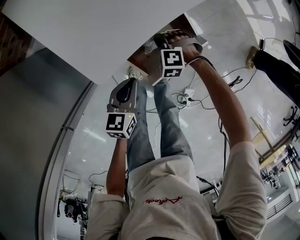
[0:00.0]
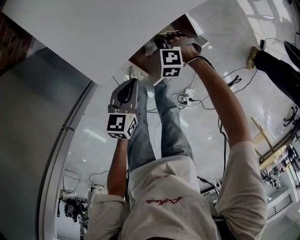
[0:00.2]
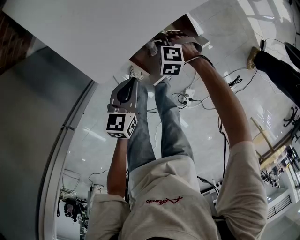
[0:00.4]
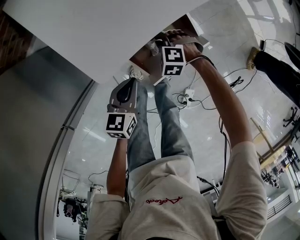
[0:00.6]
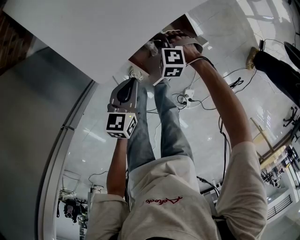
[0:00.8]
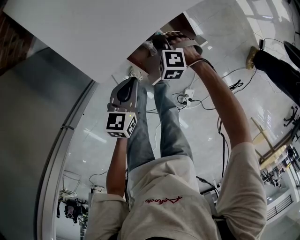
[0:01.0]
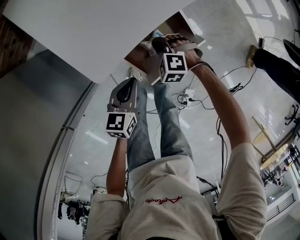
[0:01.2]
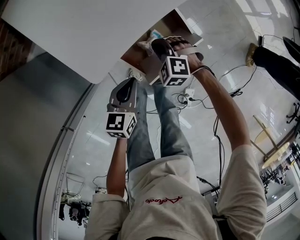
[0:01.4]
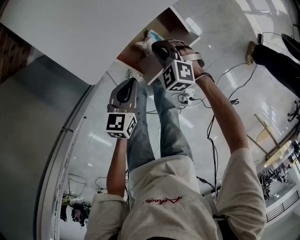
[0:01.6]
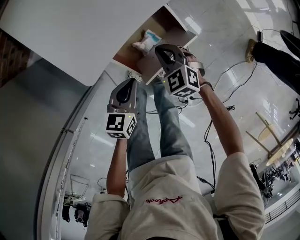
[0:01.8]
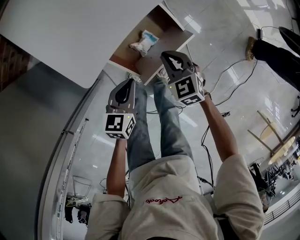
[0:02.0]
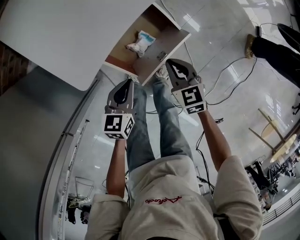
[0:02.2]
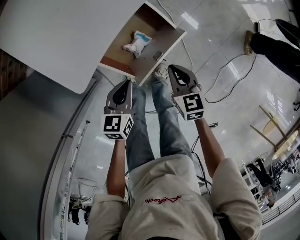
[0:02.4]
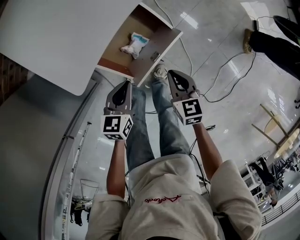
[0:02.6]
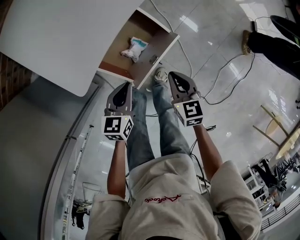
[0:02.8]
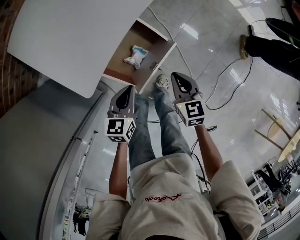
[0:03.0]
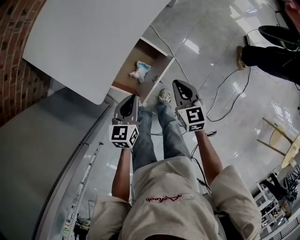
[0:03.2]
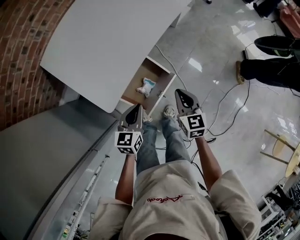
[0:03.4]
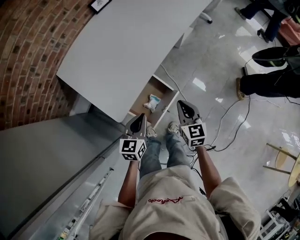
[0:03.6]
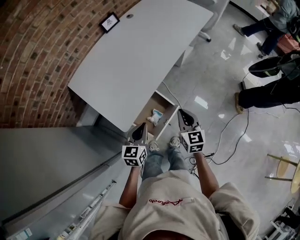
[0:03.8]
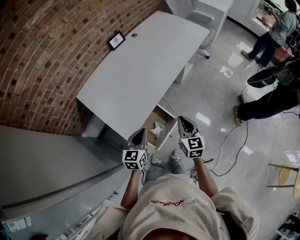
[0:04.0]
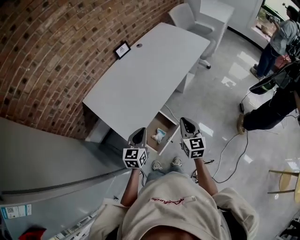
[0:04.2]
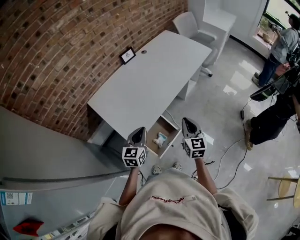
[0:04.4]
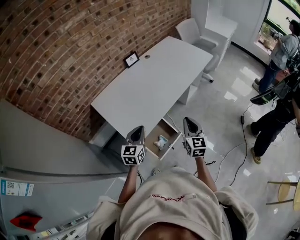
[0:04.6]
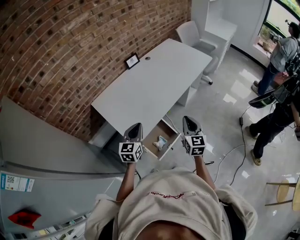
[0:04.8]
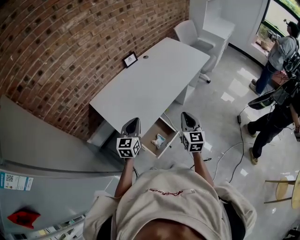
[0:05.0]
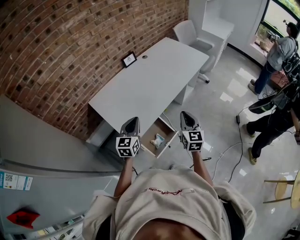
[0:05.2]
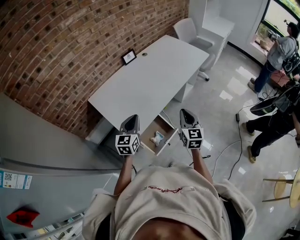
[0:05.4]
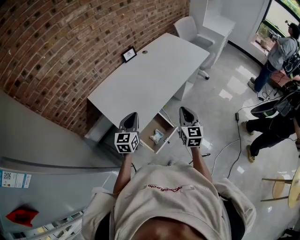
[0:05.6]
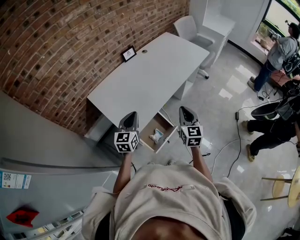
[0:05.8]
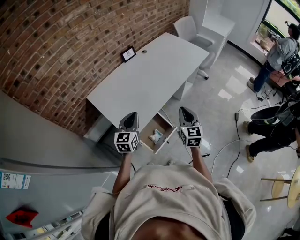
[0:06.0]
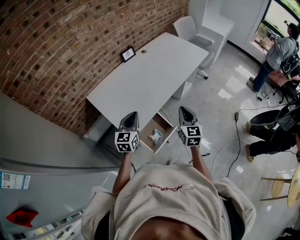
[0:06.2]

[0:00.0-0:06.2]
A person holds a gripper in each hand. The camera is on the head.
0:00.0 to 0:01.6: The right gripper heads upward, covering about 5 cm, and turns by approximately 30 degrees.
0:01.6 to 0:03.2: The left gripper shifts roughly 10 cm upward; the right gripper is displaced upward and to the right by roughly 20 cm, and rotates around the line of its fingers by about 60 degrees, clockwise from behind.
0:03.2 to 0:04.6: Both grippers move upward, about 30 cm. The right gripper swivels about 30 degrees. The left gripper rotates about 30 degrees.
0:04.6 to 0:06.2: There are only small adjustments of the grippers.

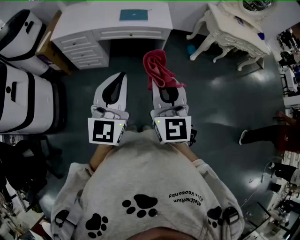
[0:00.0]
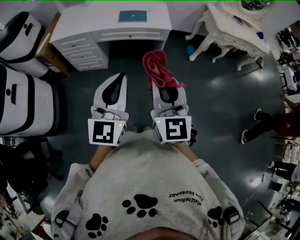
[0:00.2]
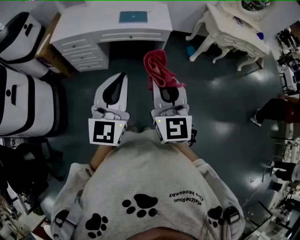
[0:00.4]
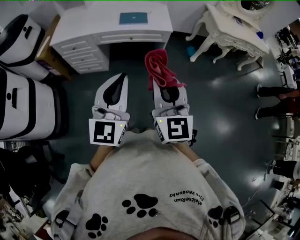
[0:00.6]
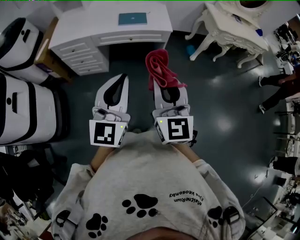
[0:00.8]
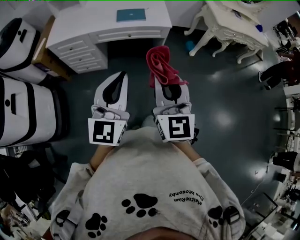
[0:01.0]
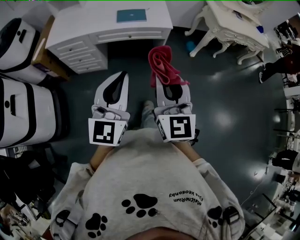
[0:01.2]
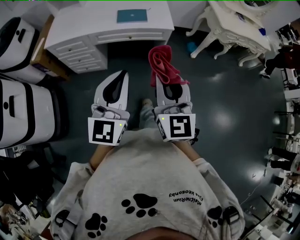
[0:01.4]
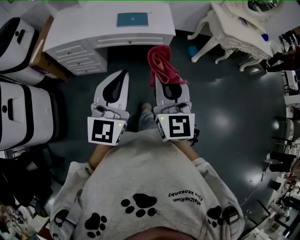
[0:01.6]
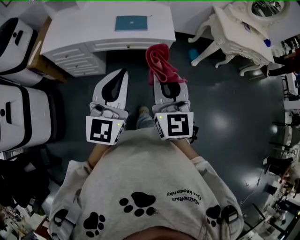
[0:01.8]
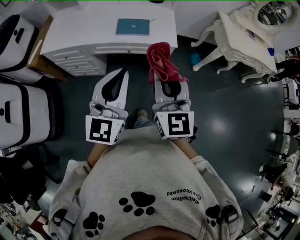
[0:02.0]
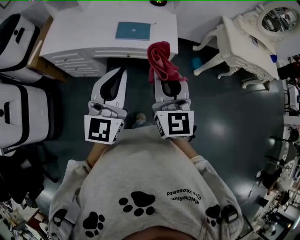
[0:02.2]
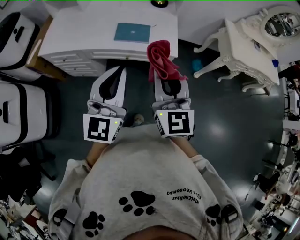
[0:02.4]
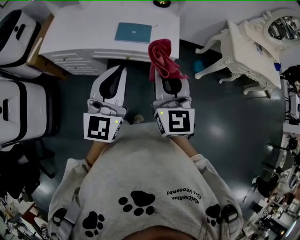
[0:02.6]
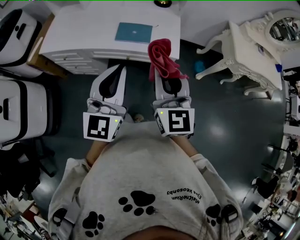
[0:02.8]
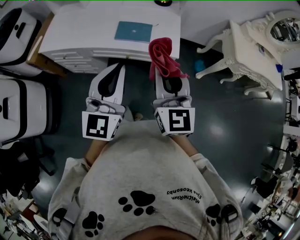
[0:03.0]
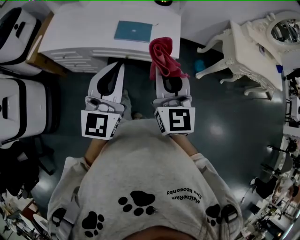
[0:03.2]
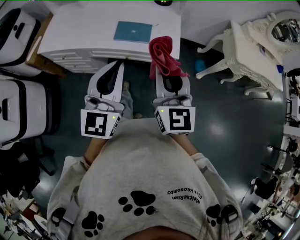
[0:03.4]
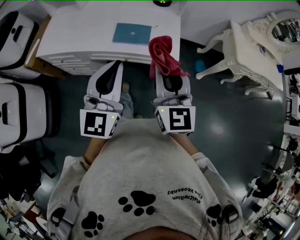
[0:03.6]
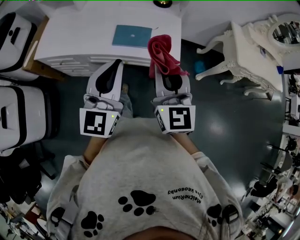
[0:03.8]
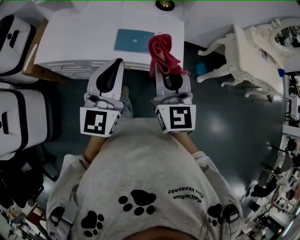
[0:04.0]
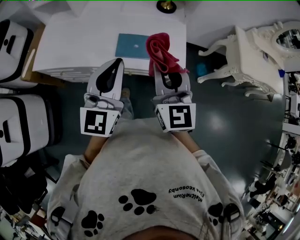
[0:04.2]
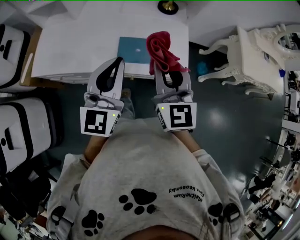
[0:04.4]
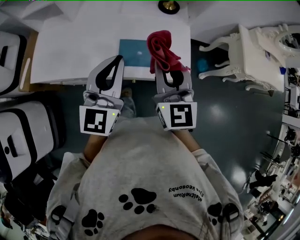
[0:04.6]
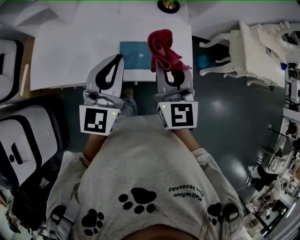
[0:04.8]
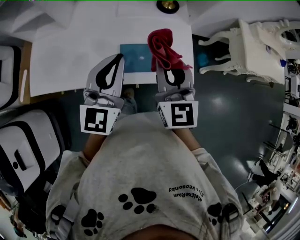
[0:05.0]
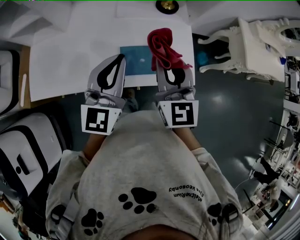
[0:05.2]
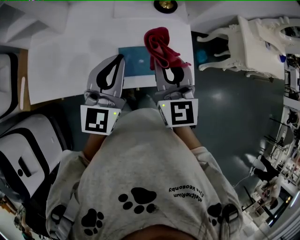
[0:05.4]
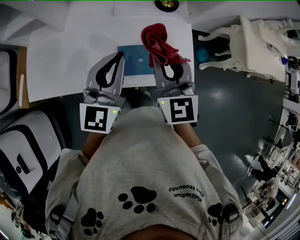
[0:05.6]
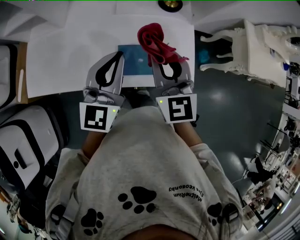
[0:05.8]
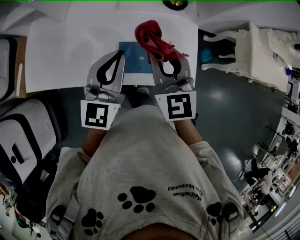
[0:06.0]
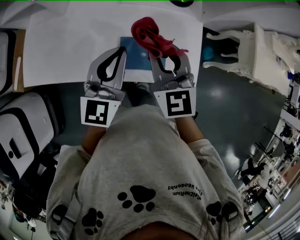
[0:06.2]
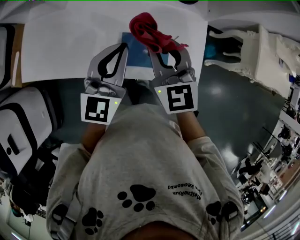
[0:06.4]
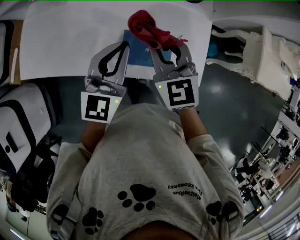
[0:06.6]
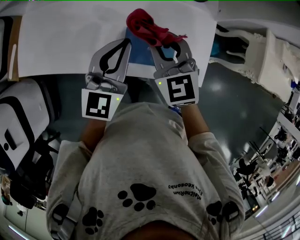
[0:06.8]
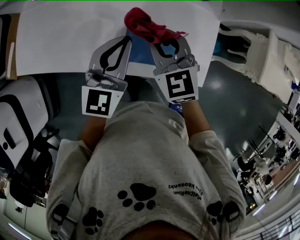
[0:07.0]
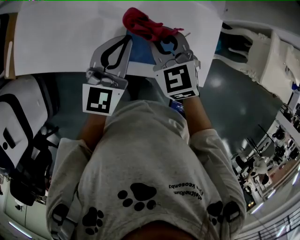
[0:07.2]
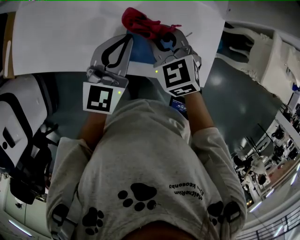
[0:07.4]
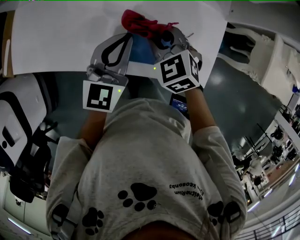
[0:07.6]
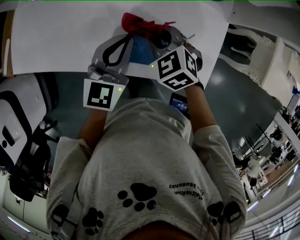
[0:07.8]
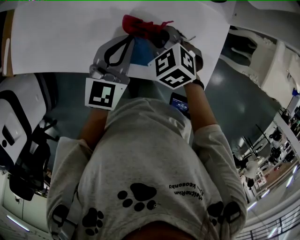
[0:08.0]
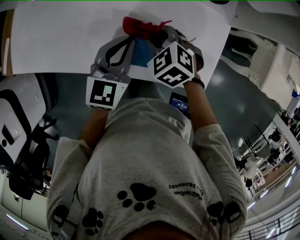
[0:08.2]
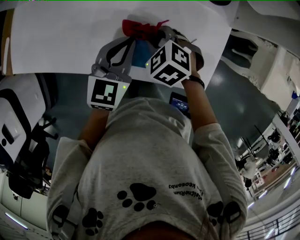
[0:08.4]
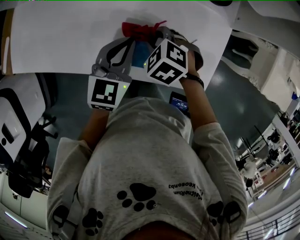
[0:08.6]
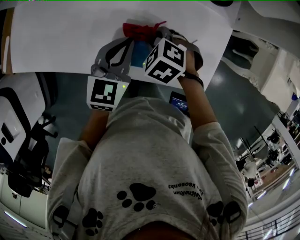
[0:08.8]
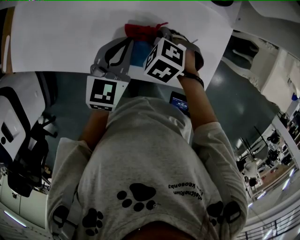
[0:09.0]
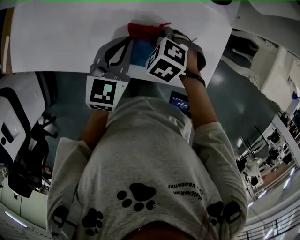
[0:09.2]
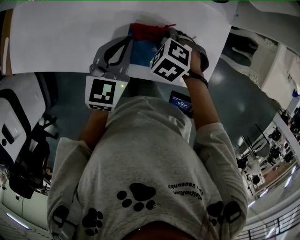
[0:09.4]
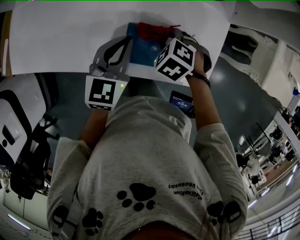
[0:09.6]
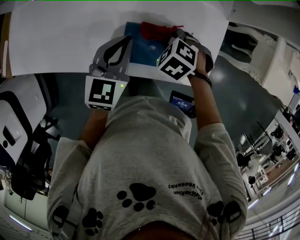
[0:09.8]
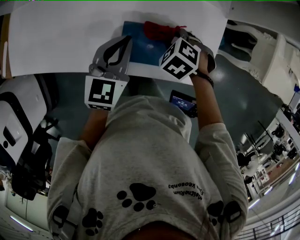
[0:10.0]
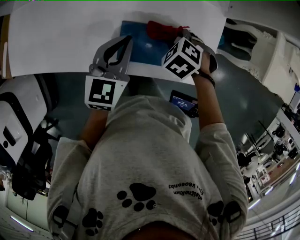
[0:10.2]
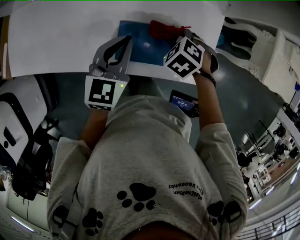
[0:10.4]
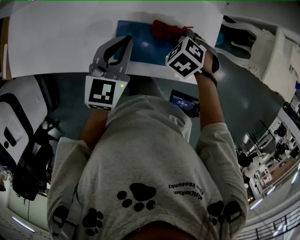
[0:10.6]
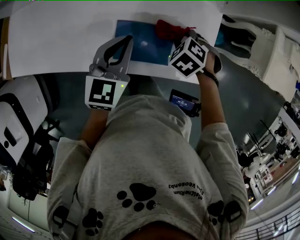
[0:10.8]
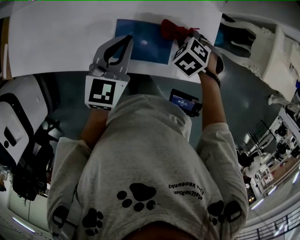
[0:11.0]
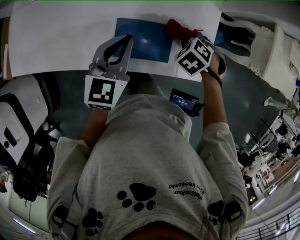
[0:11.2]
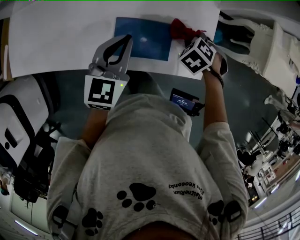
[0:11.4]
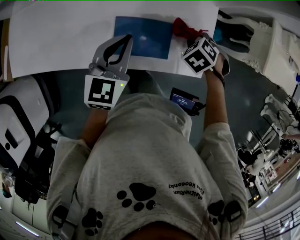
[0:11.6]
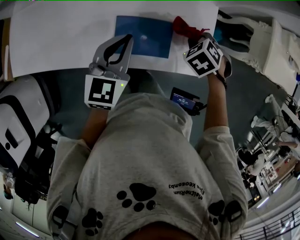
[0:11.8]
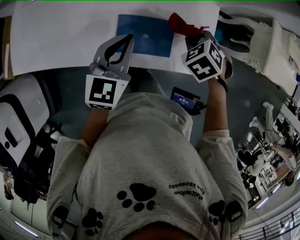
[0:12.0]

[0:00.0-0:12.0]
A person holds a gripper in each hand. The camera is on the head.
0:00.0 to 0:01.6: Both grippers travel together forward, approximately 10 cm.
0:01.6 to 0:03.0: The grippers both shift forward by some 20 cm.
0:03.0 to 0:04.4: Both grippers travel together forward, about 20 cm.
0:04.4 to 0:06.0: The left gripper is displaced forward and downward by some 15 cm; the right gripper travels forward by about 15 cm.
0:06.0 to 0:07.6: The right gripper shifts about 20 cm downward, and points its fingers about 40 degrees further downward. The left gripper shifts roughly 15 cm downward.
0:07.6 to 0:09.0: The right gripper goes about 10 cm downward, and rotates some 30 degrees, while the left gripper heads downward, covering about 5 cm.
0:09.0 to 0:10.4: The right gripper shifts by approximately 10 cm.
0:10.4 to 0:12.0: The right gripper moves roughly 10 cm.

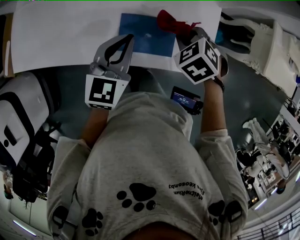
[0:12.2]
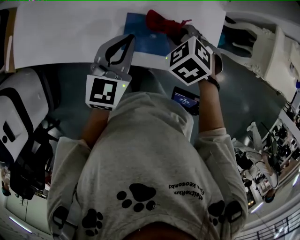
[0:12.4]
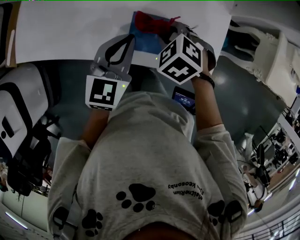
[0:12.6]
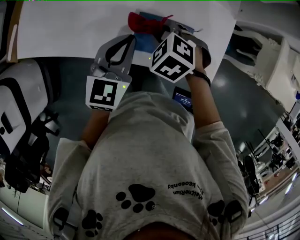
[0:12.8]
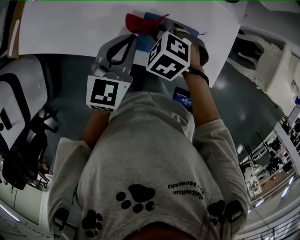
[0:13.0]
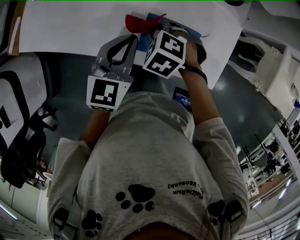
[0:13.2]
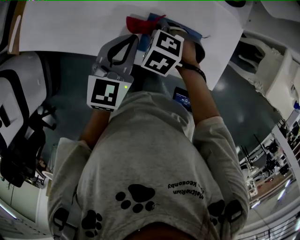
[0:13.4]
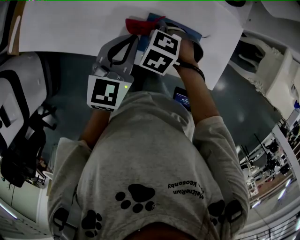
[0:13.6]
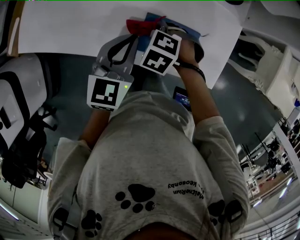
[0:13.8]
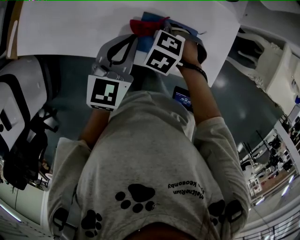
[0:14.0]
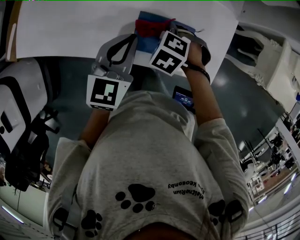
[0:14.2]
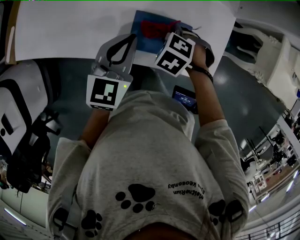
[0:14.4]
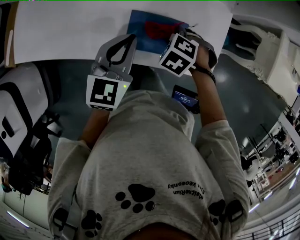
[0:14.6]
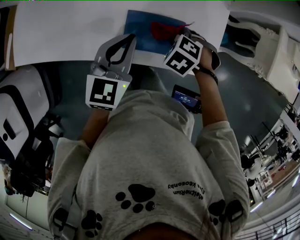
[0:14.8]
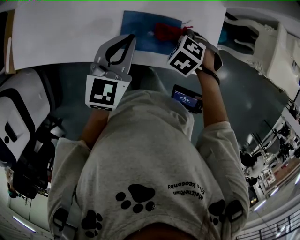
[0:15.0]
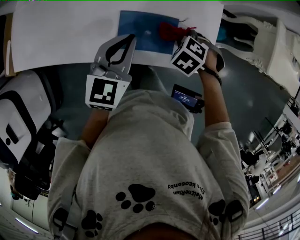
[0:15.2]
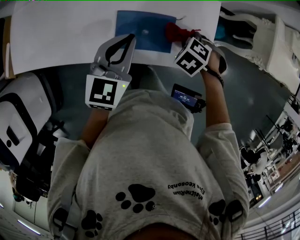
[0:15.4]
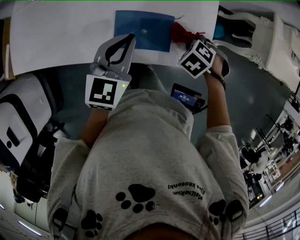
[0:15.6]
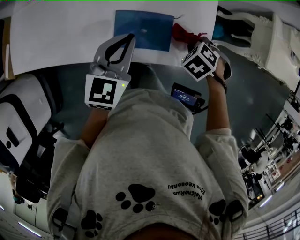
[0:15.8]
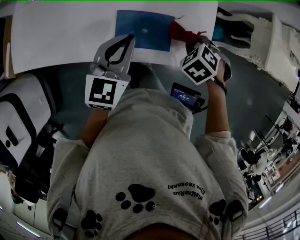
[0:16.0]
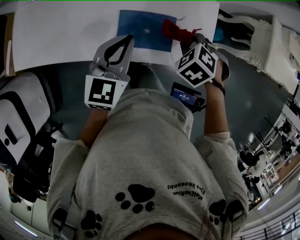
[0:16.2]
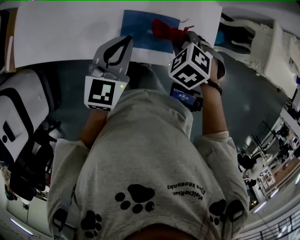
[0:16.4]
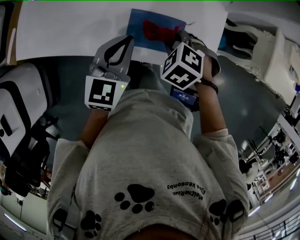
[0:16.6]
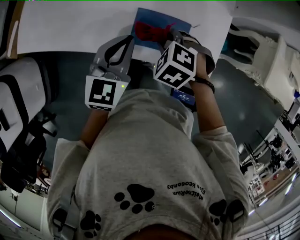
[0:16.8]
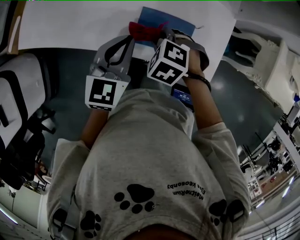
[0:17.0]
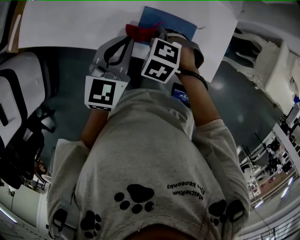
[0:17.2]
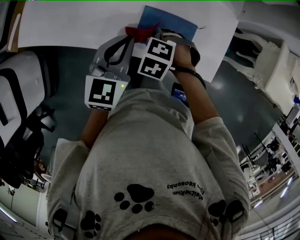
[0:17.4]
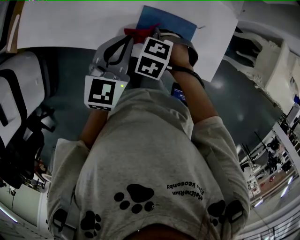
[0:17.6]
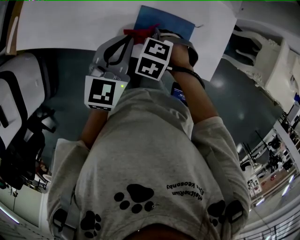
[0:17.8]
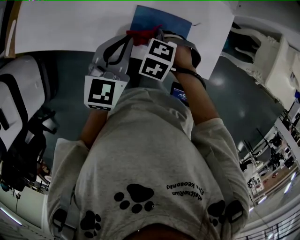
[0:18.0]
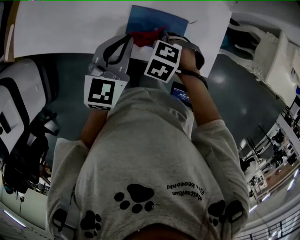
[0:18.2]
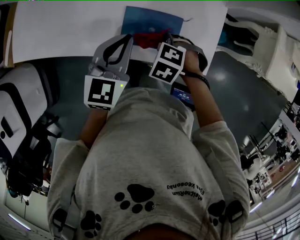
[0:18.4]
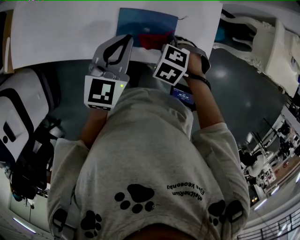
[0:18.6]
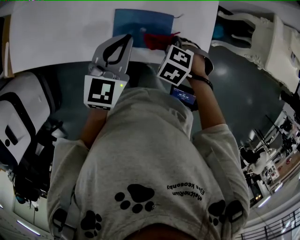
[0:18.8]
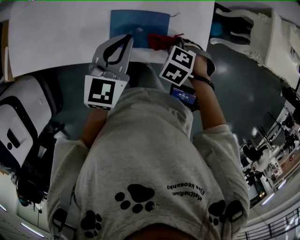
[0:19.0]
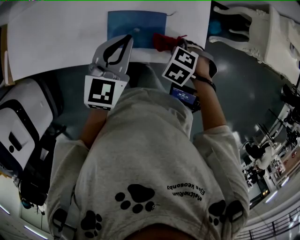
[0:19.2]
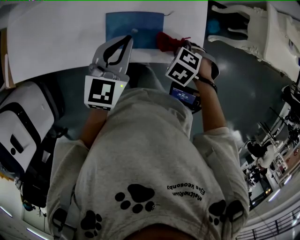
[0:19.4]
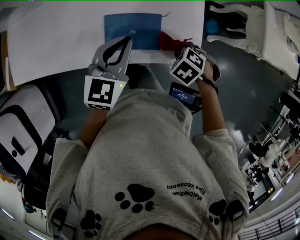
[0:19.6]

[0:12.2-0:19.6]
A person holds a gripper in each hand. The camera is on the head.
0:12.2 to 0:13.6: The right gripper changes place by some 20 cm, and changes its angle by some 30 degrees, while the left gripper ends up approximately 10 cm from where it was.
0:13.6 to 0:15.2: The left gripper shifts by roughly 10 cm; the right gripper shifts by roughly 20 cm.
0:15.2 to 0:16.6: The right gripper shifts by roughly 10 cm.
0:16.6 to 0:18.2: The right gripper heads downward, covering about 5 cm.
0:18.2 to 0:19.6: The left gripper moves about 10 cm. Meanwhile the right gripper shifts by about 15 cm, and changes its angle by some 30 degrees.
